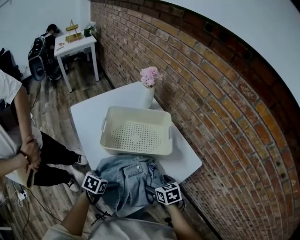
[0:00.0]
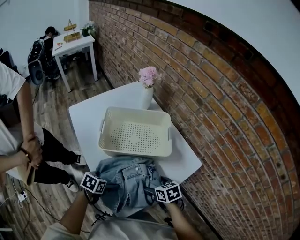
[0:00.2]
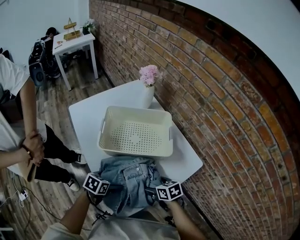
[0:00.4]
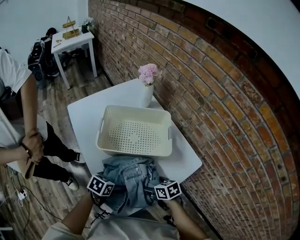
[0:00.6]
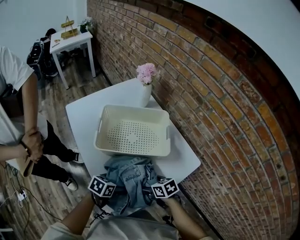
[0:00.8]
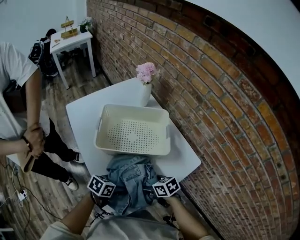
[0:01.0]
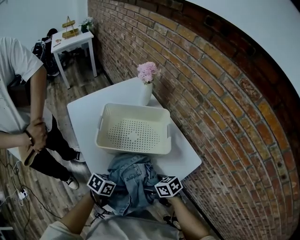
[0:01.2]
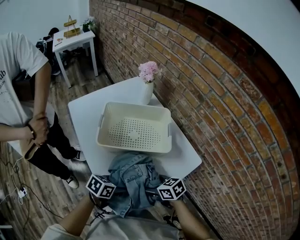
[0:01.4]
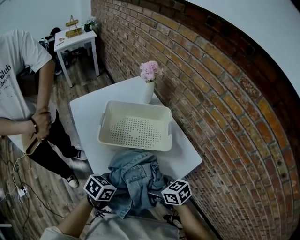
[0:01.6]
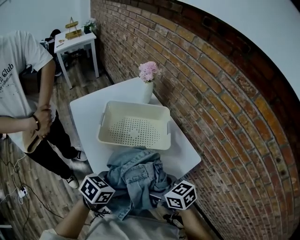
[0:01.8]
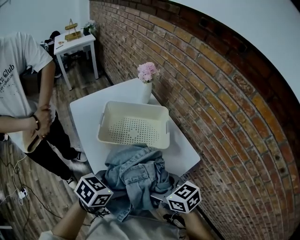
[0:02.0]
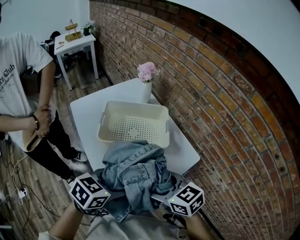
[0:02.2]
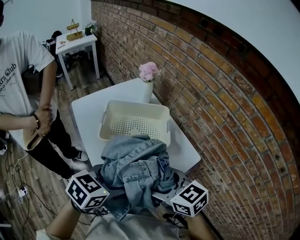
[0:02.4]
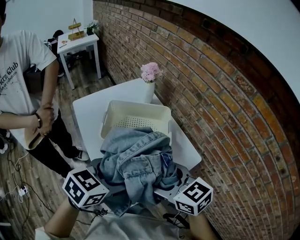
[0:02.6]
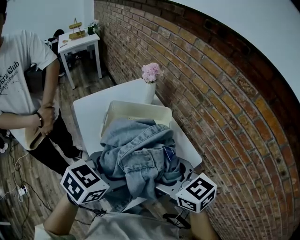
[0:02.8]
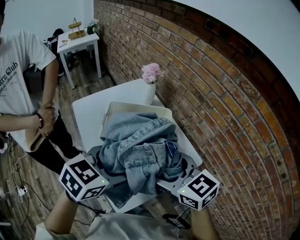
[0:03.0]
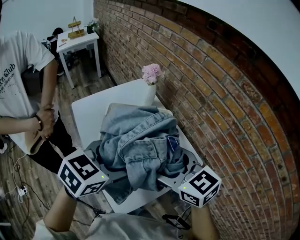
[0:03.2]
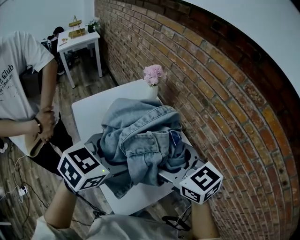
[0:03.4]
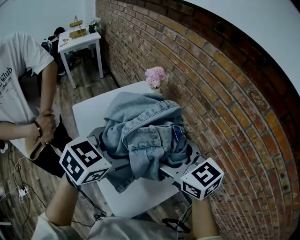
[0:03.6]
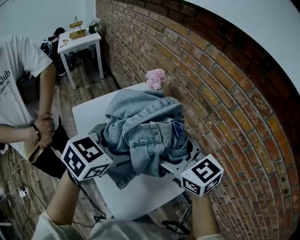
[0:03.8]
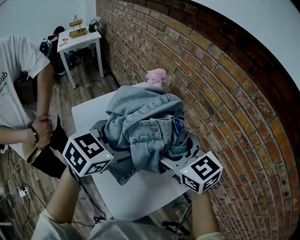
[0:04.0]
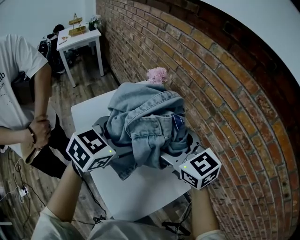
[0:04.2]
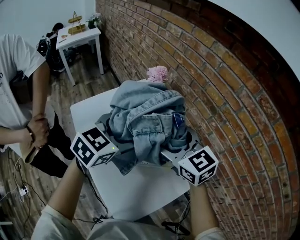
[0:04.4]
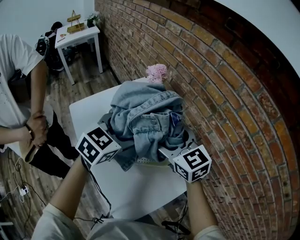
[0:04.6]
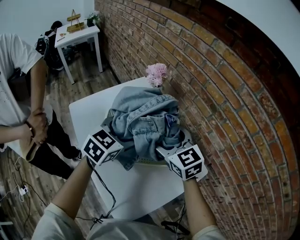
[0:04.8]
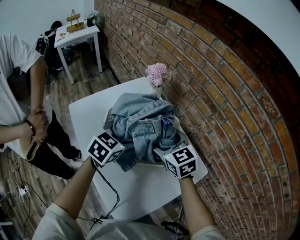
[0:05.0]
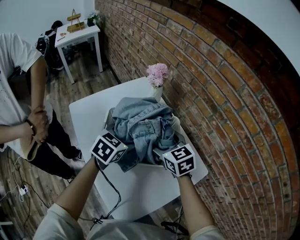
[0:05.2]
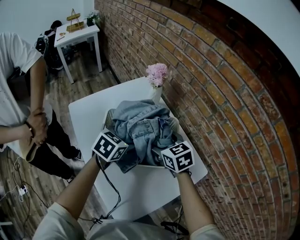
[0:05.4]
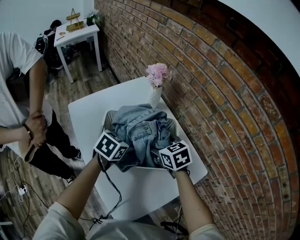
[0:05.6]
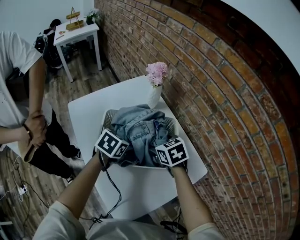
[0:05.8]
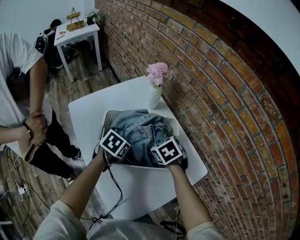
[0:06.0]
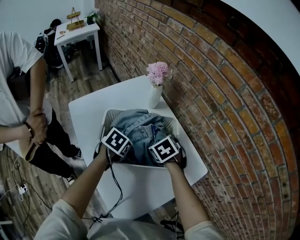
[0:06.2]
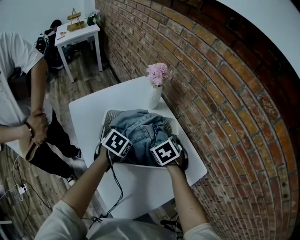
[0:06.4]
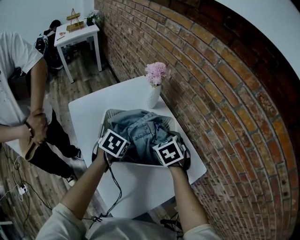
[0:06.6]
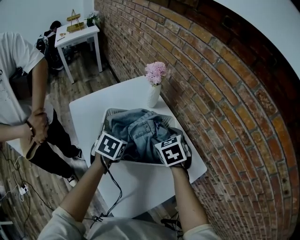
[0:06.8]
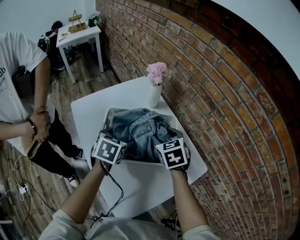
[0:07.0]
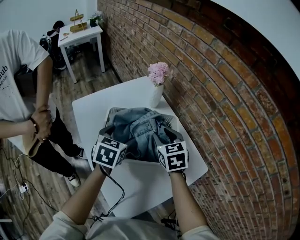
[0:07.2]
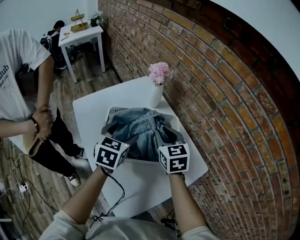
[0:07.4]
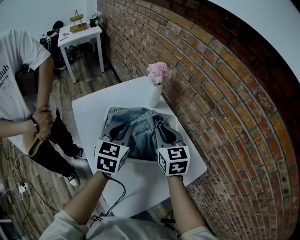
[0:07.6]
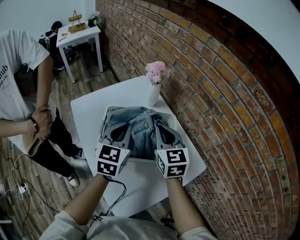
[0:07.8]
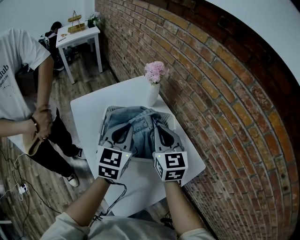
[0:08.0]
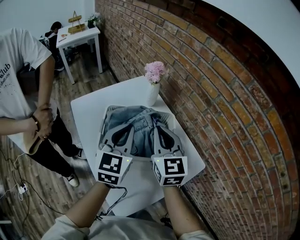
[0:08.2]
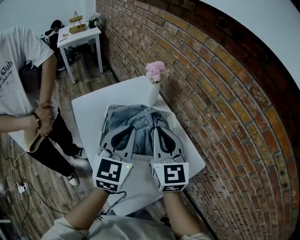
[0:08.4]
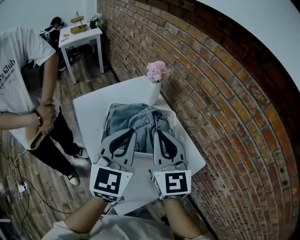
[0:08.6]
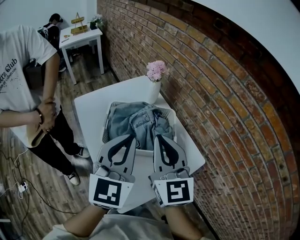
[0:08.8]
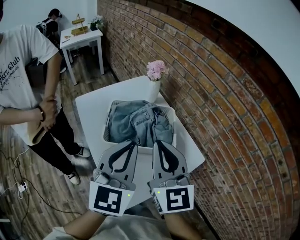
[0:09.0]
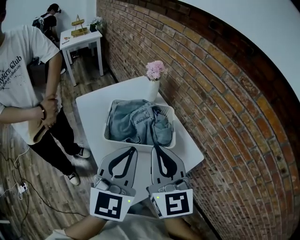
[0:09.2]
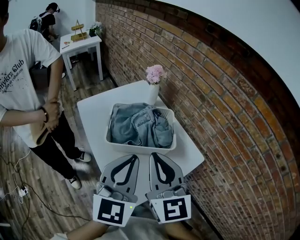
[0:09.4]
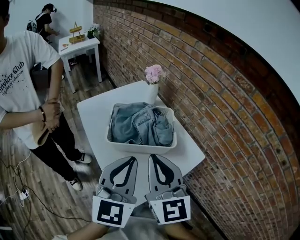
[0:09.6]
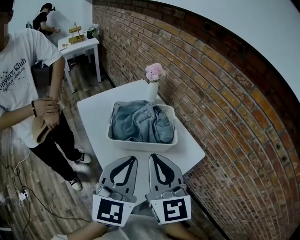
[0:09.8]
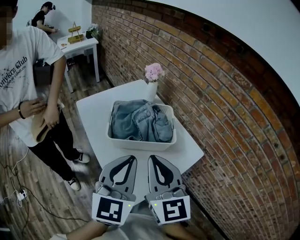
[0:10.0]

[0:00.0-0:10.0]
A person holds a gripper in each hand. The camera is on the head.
0:00.0 to 0:01.4: The left gripper moves some 10 cm, and swivels some 20 degrees; the right gripper moves about 5 cm, and rotates approximately 30 degrees.
0:01.4 to 0:02.8: The grippers both shift upward by approximately 25 cm. The left gripper swivels about 30 degrees; the right gripper changes its angle by about 30 degrees.
0:02.8 to 0:04.2: Both grippers move forward, about 20 cm.
0:04.2 to 0:05.8: The grippers both shift downward by about 20 cm. The right gripper tilts its fingers roughly 30 degrees downward. Meanwhile the left gripper changes its angle by some 30 degrees.
0:05.8 to 0:07.2: Both grippers move upward, some 5 cm. The right gripper swivels approximately 20 degrees, and closes. Meanwhile the left gripper swivels about 20 degrees.
0:07.2 to 0:08.6: The two grippers go about 20 cm upward and backward. The left gripper angles its fingers upward, by approximately 40 degrees, and closes up; the right gripper points its fingers approximately 30 degrees further upward, and closes.
0:08.6 to 0:10.0: The grippers both shift backward by about 15 cm.

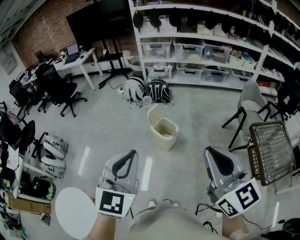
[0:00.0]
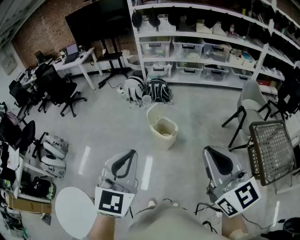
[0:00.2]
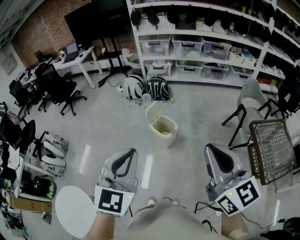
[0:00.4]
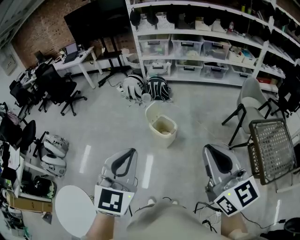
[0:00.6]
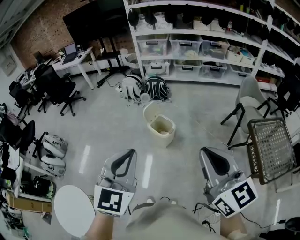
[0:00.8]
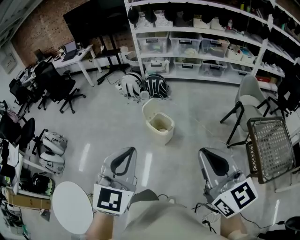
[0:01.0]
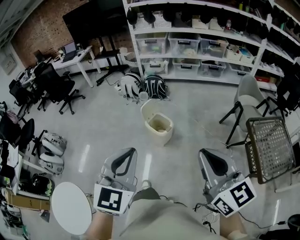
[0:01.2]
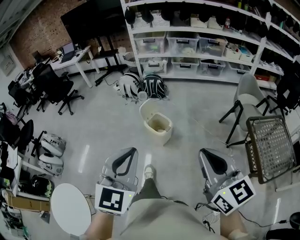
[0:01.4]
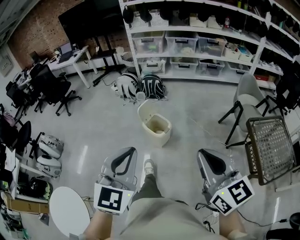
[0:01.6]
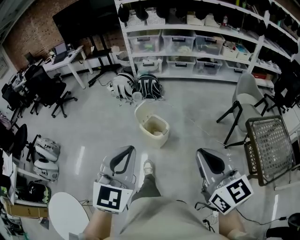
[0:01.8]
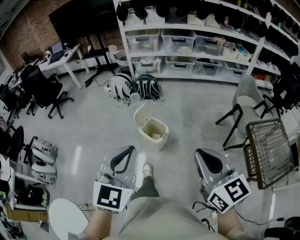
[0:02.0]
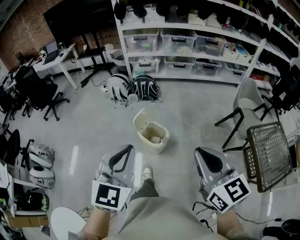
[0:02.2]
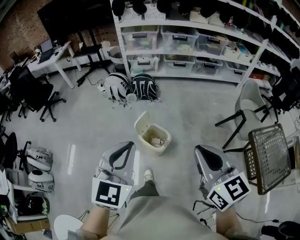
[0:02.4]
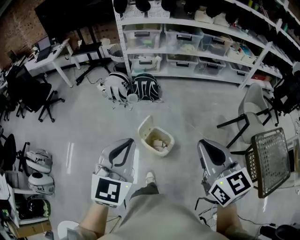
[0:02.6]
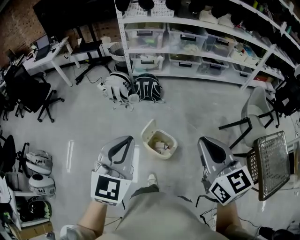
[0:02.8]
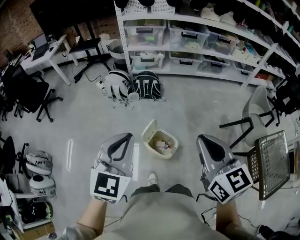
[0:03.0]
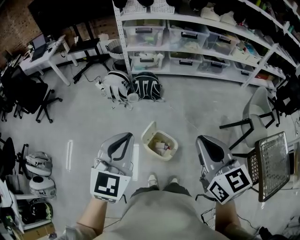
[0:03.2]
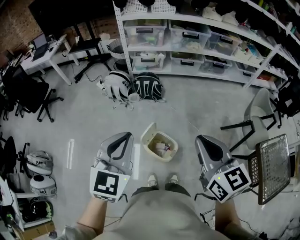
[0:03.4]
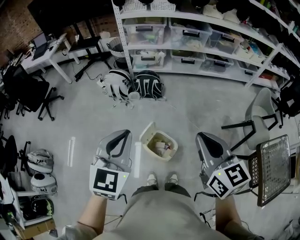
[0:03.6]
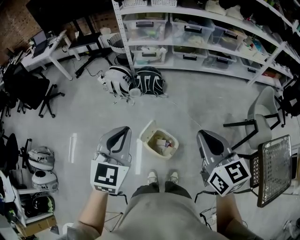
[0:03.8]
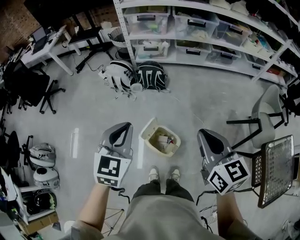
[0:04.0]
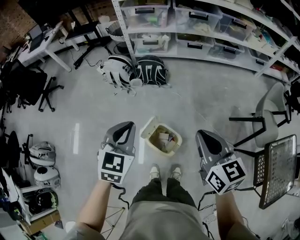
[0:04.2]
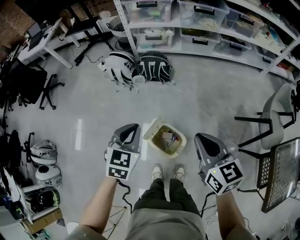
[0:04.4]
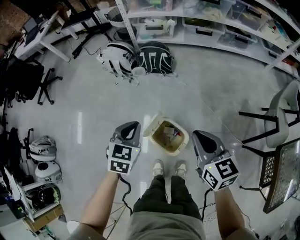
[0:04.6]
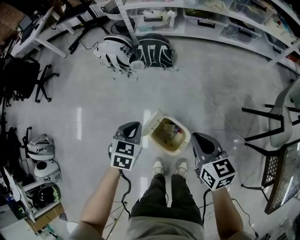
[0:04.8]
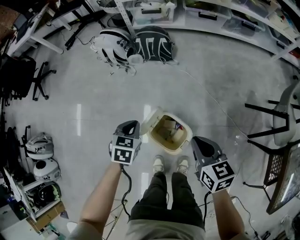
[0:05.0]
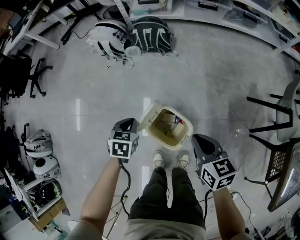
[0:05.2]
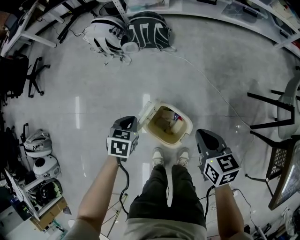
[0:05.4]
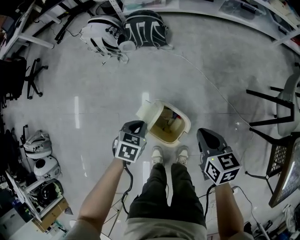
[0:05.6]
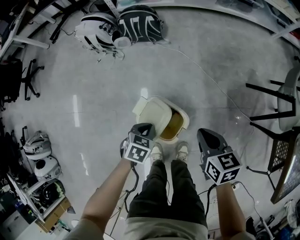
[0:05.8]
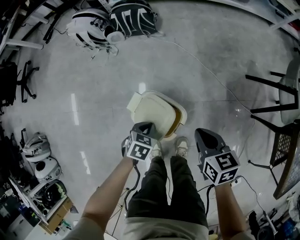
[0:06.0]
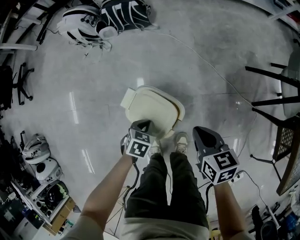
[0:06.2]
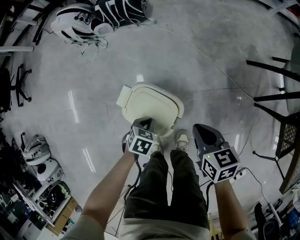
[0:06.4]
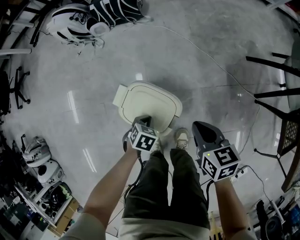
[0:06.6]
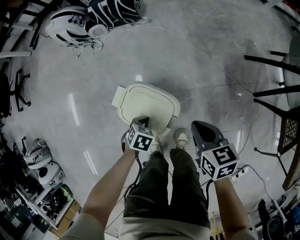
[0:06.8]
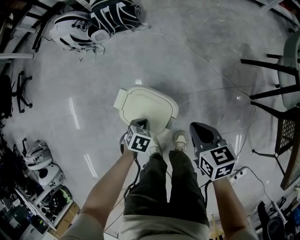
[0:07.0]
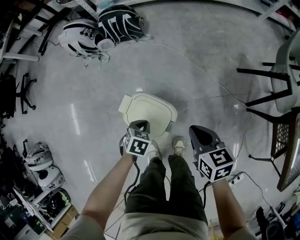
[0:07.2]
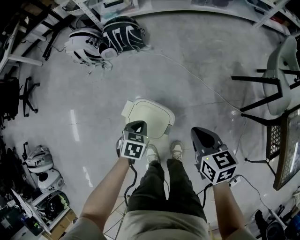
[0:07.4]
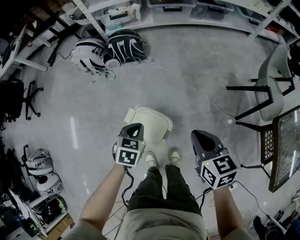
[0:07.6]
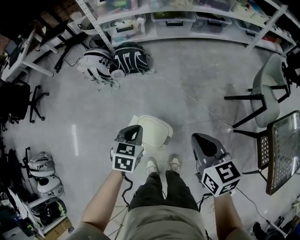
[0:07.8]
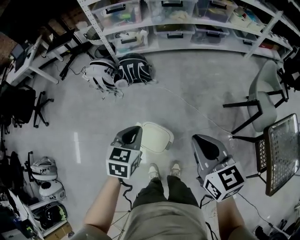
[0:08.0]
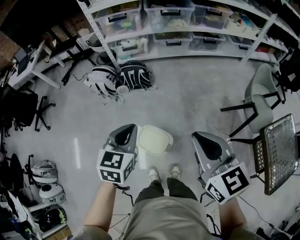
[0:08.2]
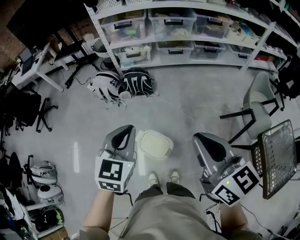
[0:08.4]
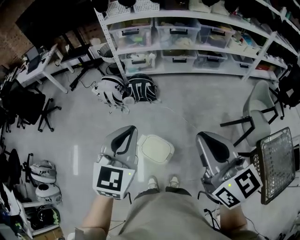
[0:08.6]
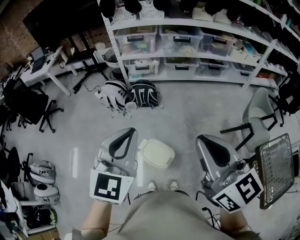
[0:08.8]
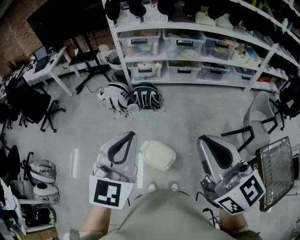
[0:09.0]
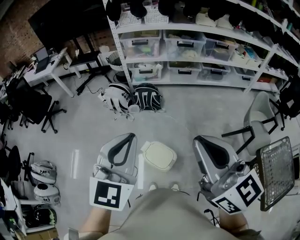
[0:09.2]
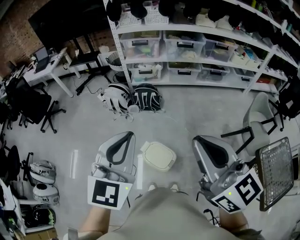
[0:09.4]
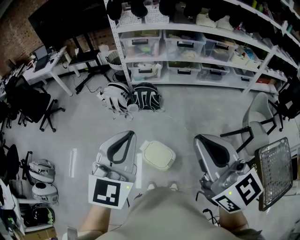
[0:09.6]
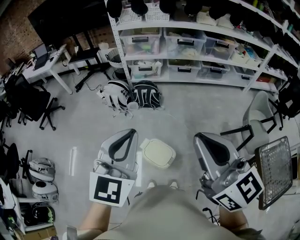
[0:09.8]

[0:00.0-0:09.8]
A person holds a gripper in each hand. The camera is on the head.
0:00.0 to 0:01.4: The right gripper moves downward and to the right, about 10 cm. The left gripper moves to the right, approximately 5 cm.
0:01.4 to 0:02.8: The pair of grippers is taken forward, approximately 40 cm.
0:02.8 to 0:04.2: Both grippers move forward and downward, roughly 20 cm.
0:04.2 to 0:05.6: The grippers both shift downward by approximately 40 cm. The right gripper swivels roughly 20 degrees; the left gripper tilts its fingers roughly 30 degrees downward.
0:05.6 to 0:07.0: The right gripper moves downward, approximately 10 cm. Meanwhile the left gripper is displaced downward by some 15 cm.
0:07.0 to 0:08.4: The two grippers go about 60 cm upward. The right gripper angles its fingers upward, by some 40 degrees, while the left gripper points its fingers about 50 degrees further upward.
0:08.4 to 0:09.8: The right gripper moves upward and to the left, roughly 10 cm. Meanwhile the left gripper travels upward and backward by roughly 15 cm.

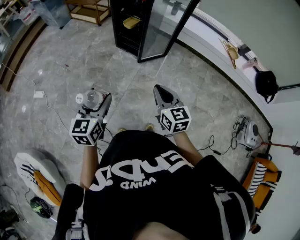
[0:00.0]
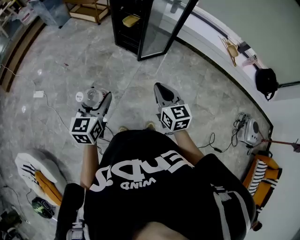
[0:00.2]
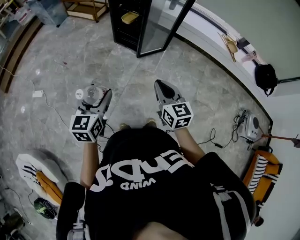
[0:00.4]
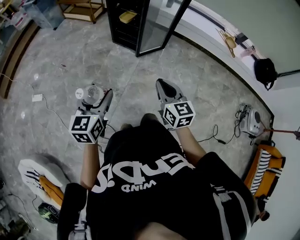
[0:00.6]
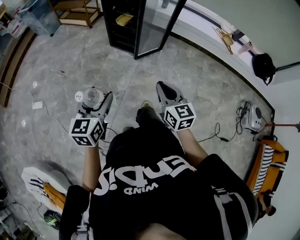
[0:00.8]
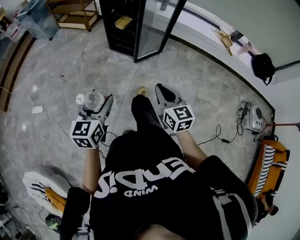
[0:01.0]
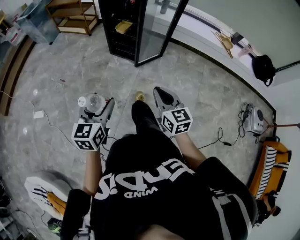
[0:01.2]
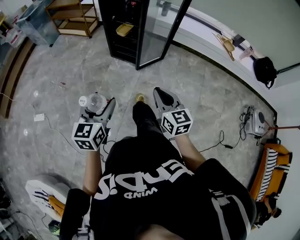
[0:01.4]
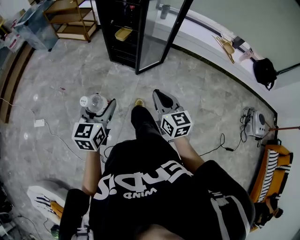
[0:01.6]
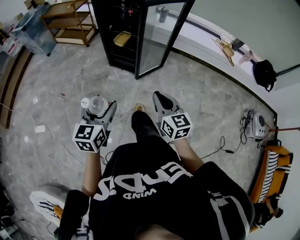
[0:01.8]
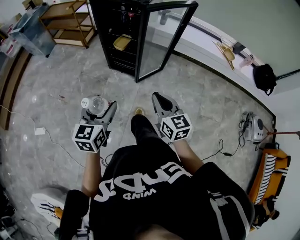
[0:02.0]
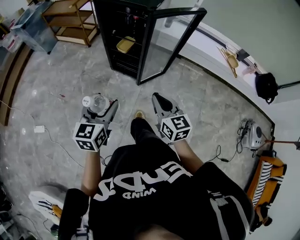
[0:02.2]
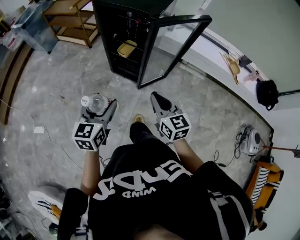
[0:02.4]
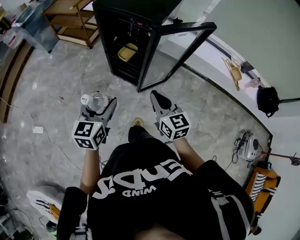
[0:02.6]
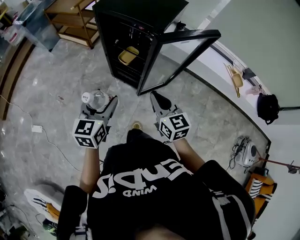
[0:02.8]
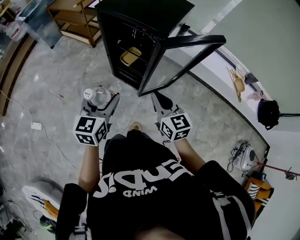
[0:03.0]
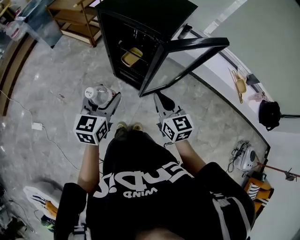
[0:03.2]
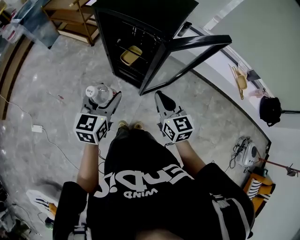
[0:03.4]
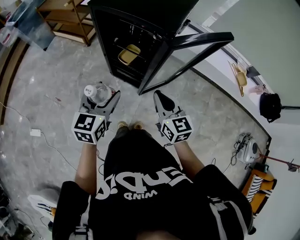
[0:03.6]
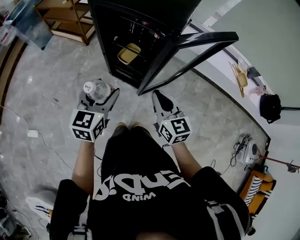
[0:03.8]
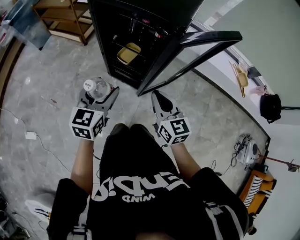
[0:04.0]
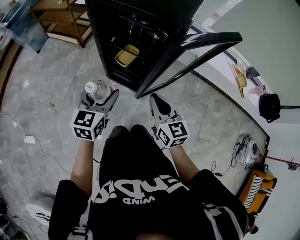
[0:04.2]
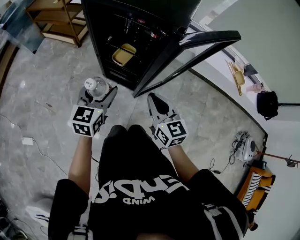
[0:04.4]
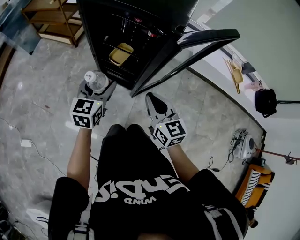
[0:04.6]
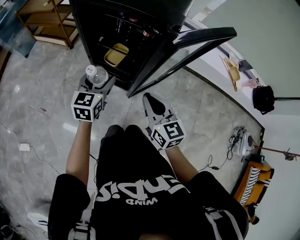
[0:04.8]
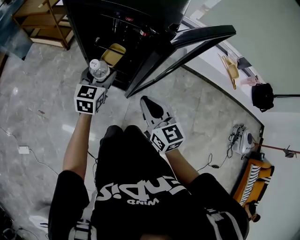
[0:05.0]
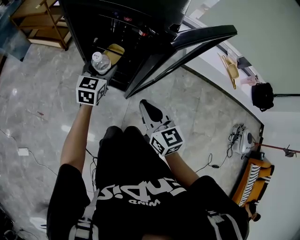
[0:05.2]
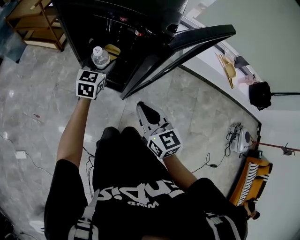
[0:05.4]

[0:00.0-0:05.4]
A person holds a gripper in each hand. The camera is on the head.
0:00.0 to 0:01.4: The right gripper goes approximately 5 cm to the left, while the left gripper heads forward, covering roughly 5 cm.
0:01.4 to 0:02.8: Both grippers move forward, approximately 35 cm.
0:02.8 to 0:04.0: The right gripper moves downward and forward, some 10 cm; the left gripper shifts roughly 15 cm forward and downward.
0:04.0 to 0:05.4: The left gripper heads forward and downward, covering some 25 cm.
